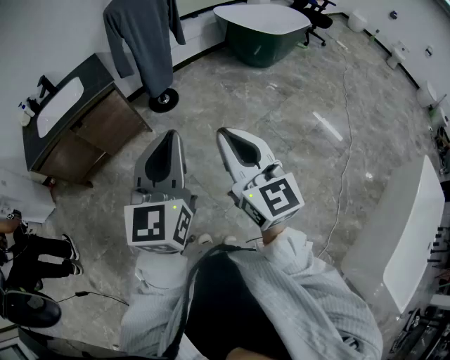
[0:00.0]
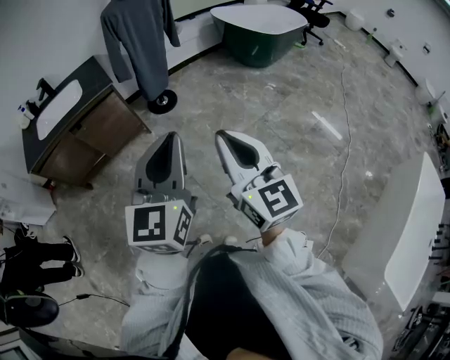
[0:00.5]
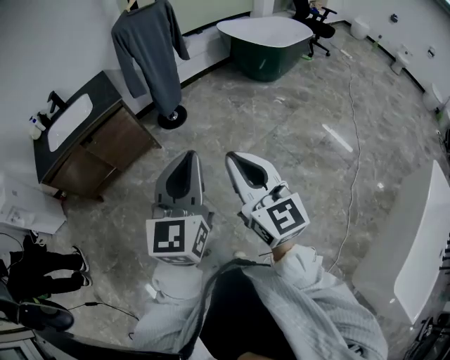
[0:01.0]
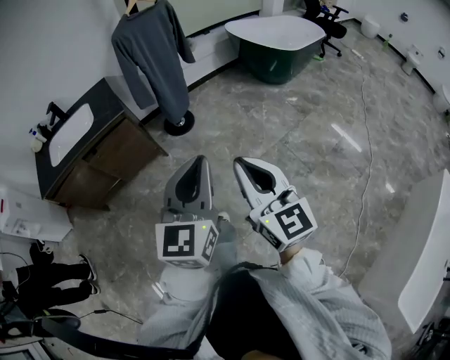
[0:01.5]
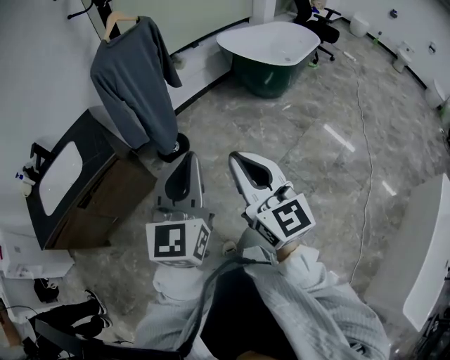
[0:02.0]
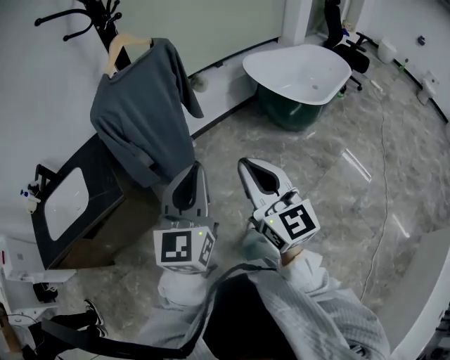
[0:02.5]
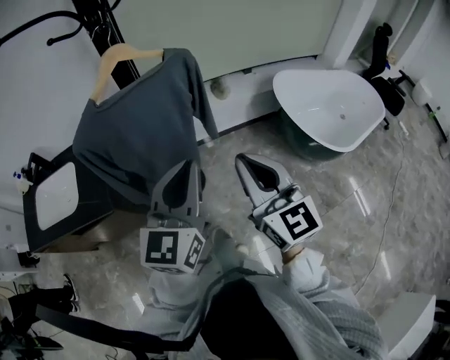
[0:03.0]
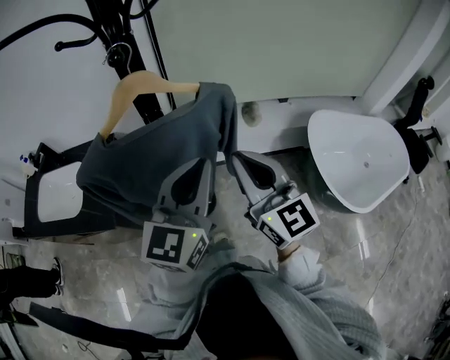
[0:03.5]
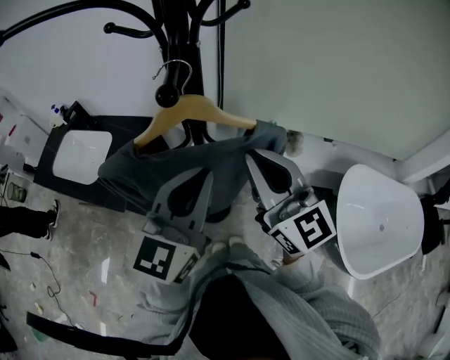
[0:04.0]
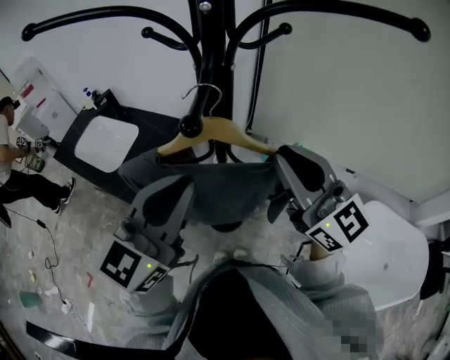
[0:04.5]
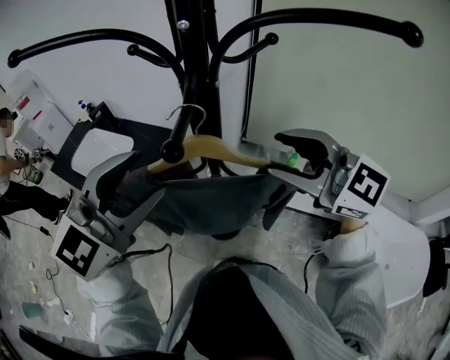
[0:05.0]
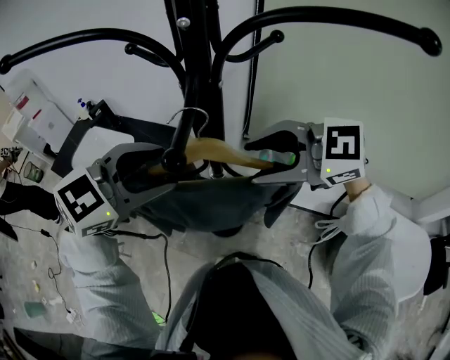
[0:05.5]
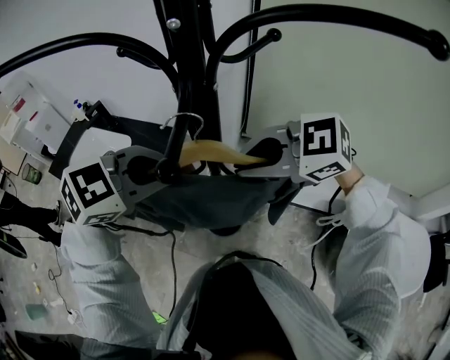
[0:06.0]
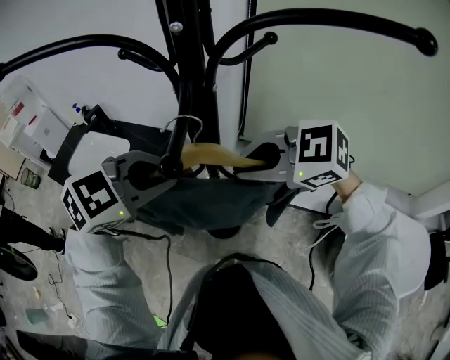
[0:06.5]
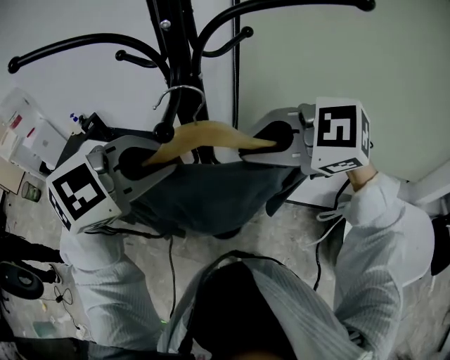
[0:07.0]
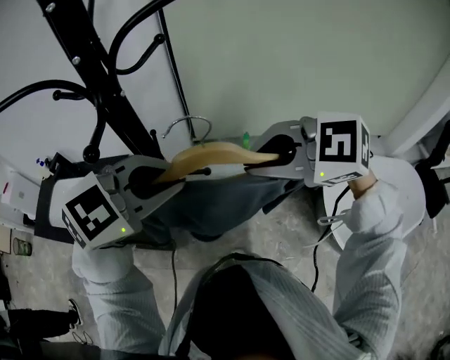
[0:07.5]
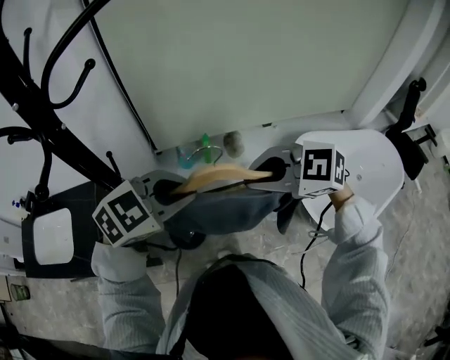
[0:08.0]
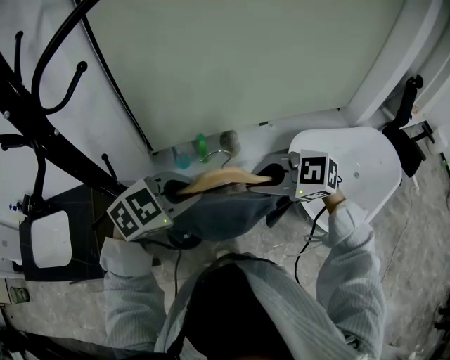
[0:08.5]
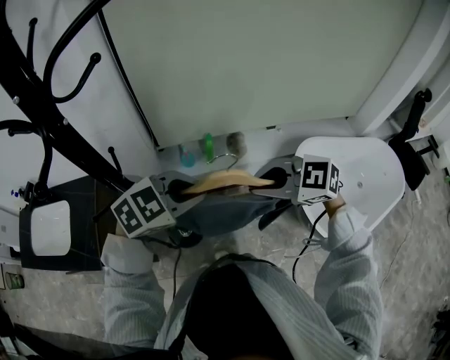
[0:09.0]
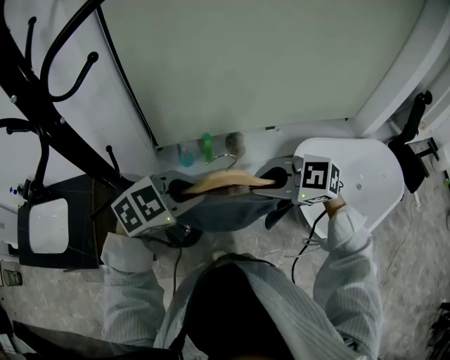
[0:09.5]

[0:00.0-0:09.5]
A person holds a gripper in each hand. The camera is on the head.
0:00.0 to 0:02.0: The two grippers go approximately 40 cm forward.
0:02.0 to 0:04.0: The two grippers travel together, about 80 cm. The right gripper changes its angle by about 50 degrees, while the left gripper rotates roughly 30 degrees.
0:04.0 to 0:05.5: The right gripper ends up some 5 cm from where it was, tips its fingers downward by about 30 degrees, and opens up, while the left gripper moves some 10 cm, swivels some 40 degrees, and opens.
0:05.5 to 0:07.5: The right gripper shifts by some 15 cm, rotates roughly 20 degrees, and closes its fingers; the left gripper moves about 15 cm, rotates roughly 30 degrees, and closes its fingers.
0:07.5 to 0:09.5: The grippers both shift downward by roughly 15 cm.

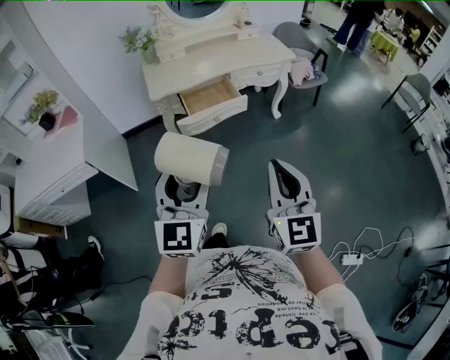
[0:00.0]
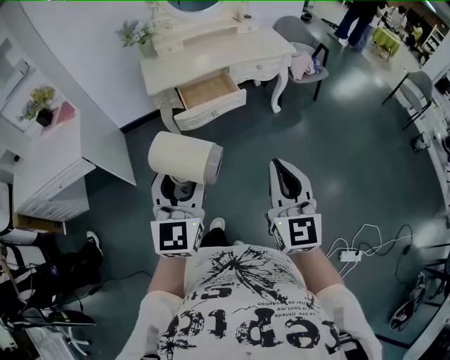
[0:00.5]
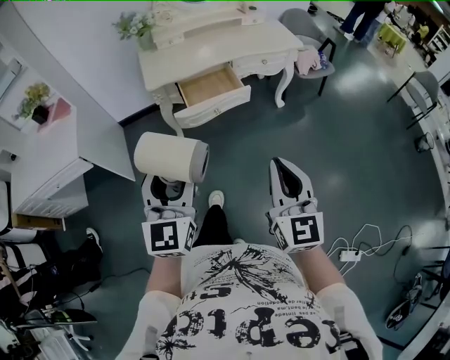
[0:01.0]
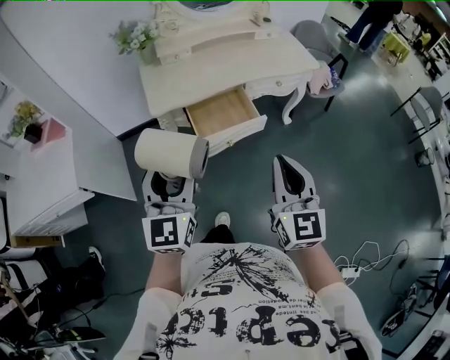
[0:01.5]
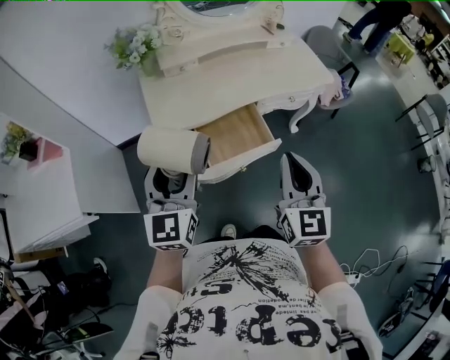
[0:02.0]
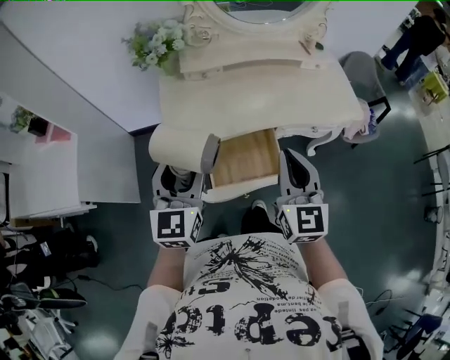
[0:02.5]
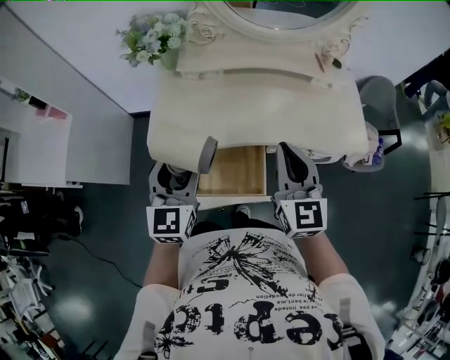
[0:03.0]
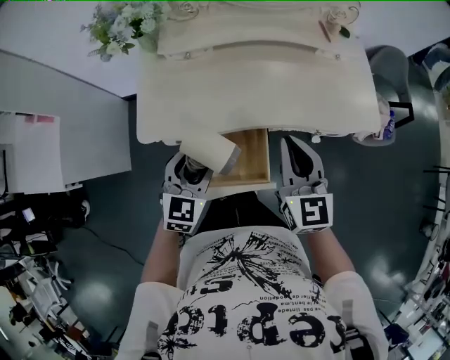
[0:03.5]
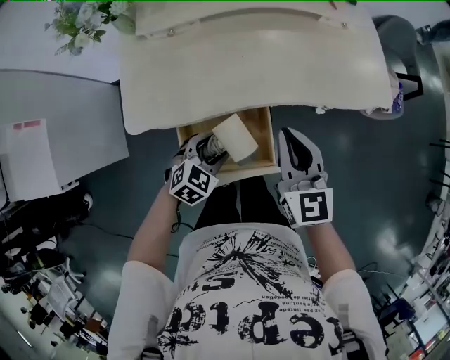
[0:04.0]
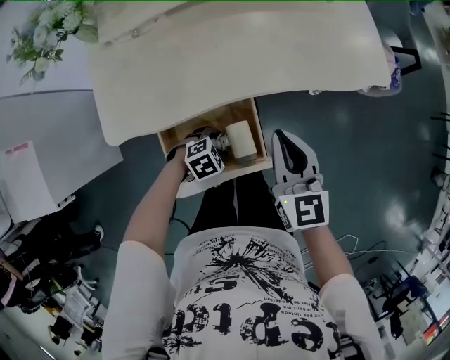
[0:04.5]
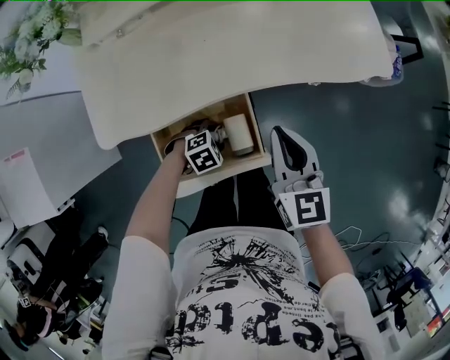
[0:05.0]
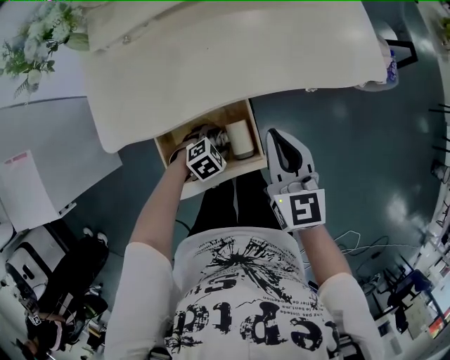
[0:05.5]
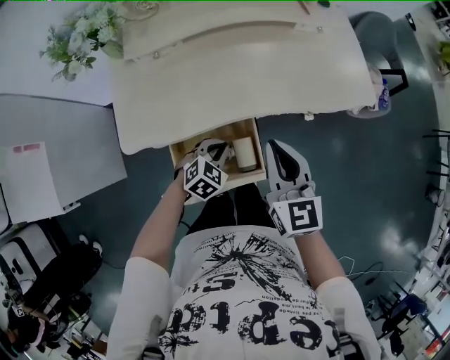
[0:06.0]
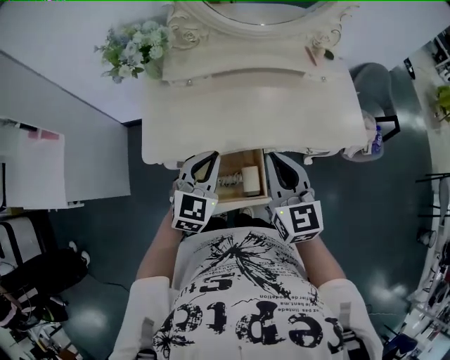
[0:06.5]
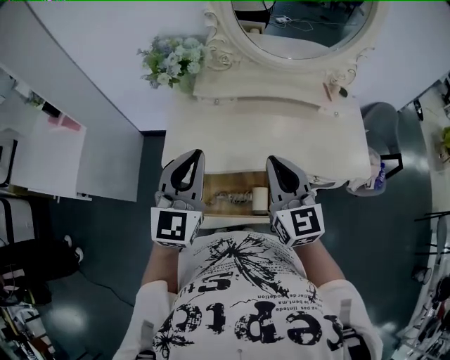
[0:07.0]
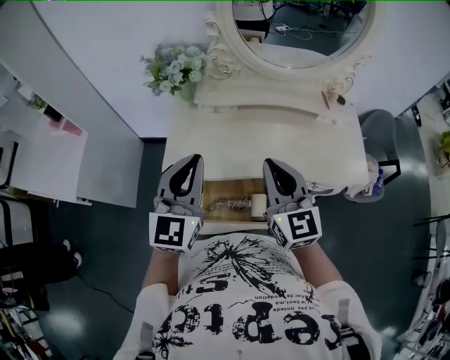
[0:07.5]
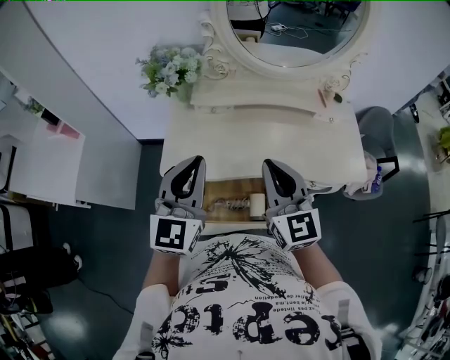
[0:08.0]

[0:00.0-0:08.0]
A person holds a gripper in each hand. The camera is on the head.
0:00.0 to 0:02.0: The grippers both shift forward by roughly 40 cm.
0:02.0 to 0:04.0: The left gripper shifts roughly 40 cm downward, to the right and forward, and angles its fingers downward, by some 50 degrees. The right gripper shifts about 30 cm forward and downward, and rotates about 20 degrees.
0:04.0 to 0:06.0: The left gripper goes downward and returns, some 15 cm each way, and closes its fingers; the right gripper goes downward and returns, roughly 5 cm each way.
0:06.0 to 0:08.0: The left gripper travels upward by approximately 35 cm, and points its fingers some 50 degrees further upward. Meanwhile the right gripper goes approximately 15 cm upward, and turns by roughly 20 degrees.

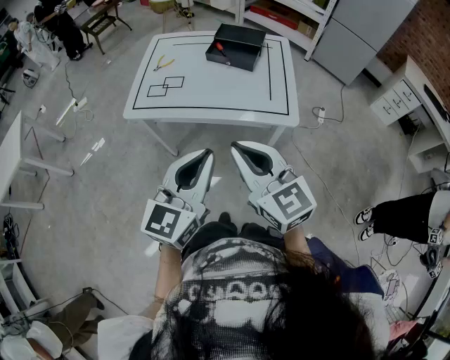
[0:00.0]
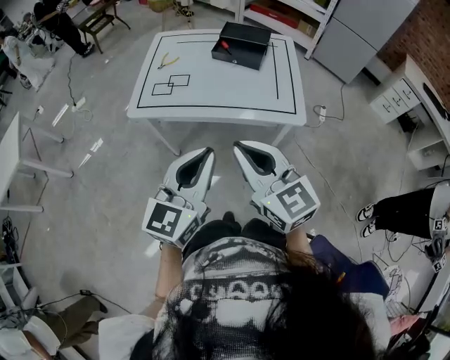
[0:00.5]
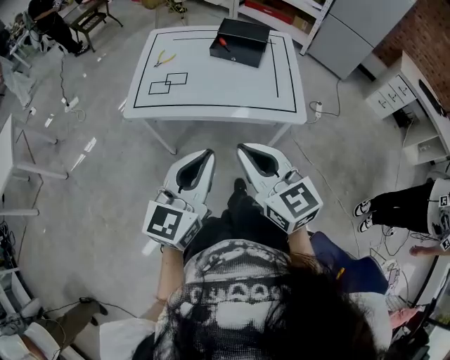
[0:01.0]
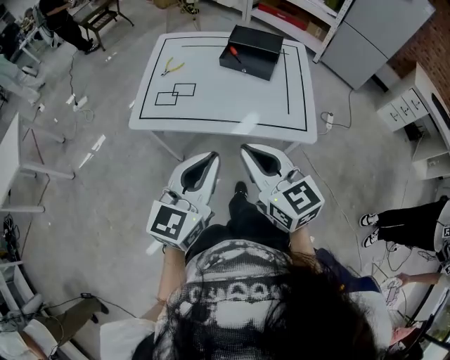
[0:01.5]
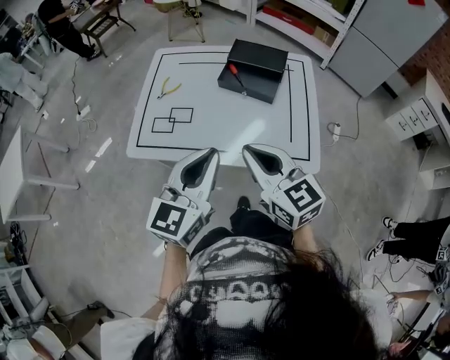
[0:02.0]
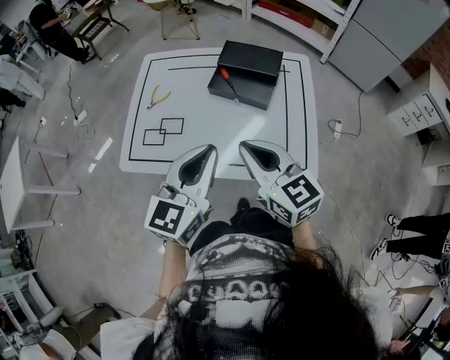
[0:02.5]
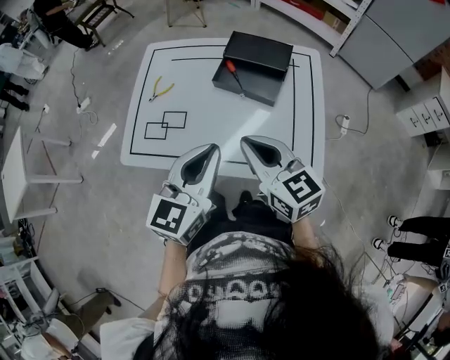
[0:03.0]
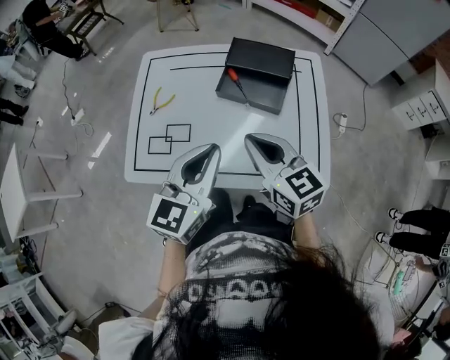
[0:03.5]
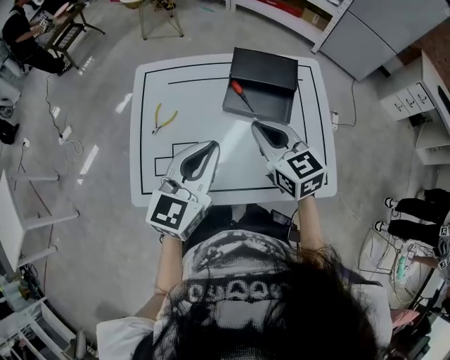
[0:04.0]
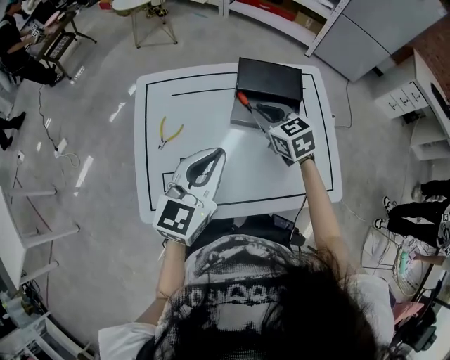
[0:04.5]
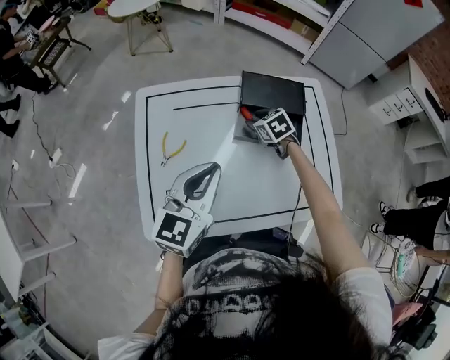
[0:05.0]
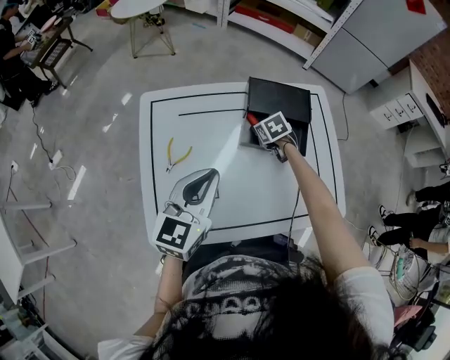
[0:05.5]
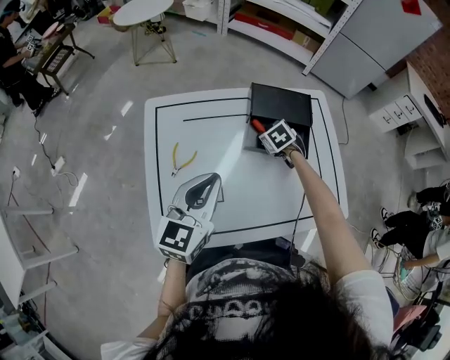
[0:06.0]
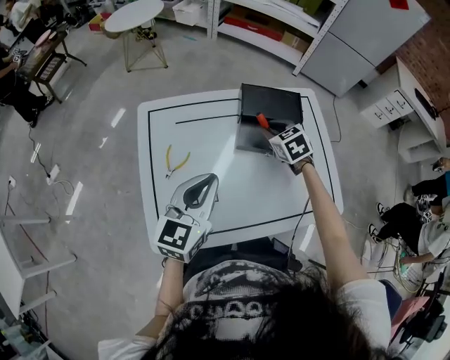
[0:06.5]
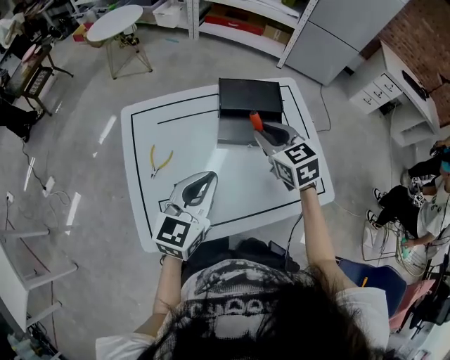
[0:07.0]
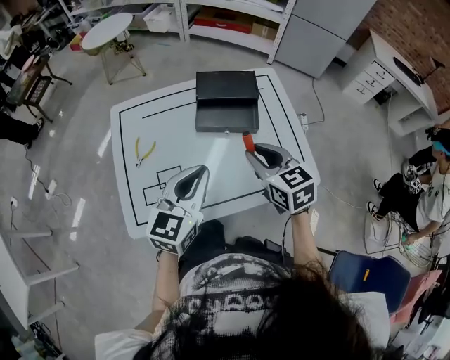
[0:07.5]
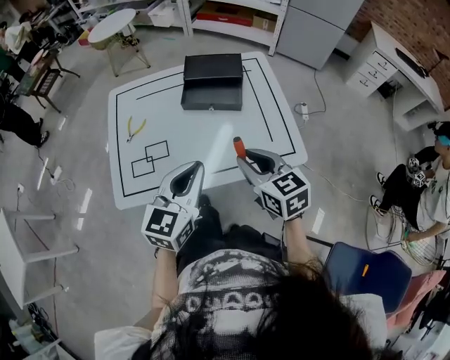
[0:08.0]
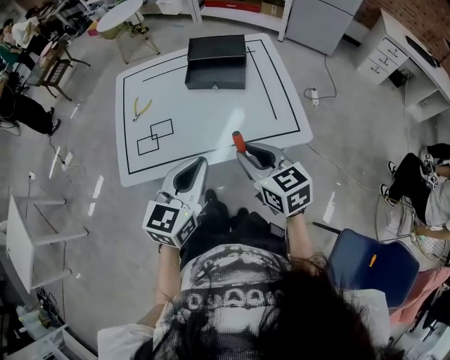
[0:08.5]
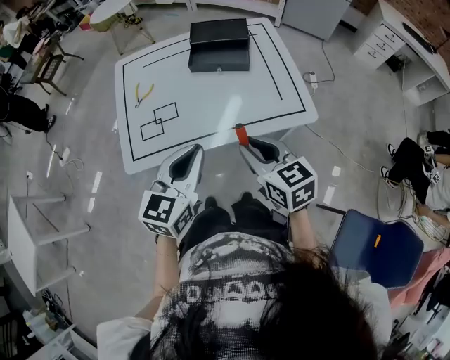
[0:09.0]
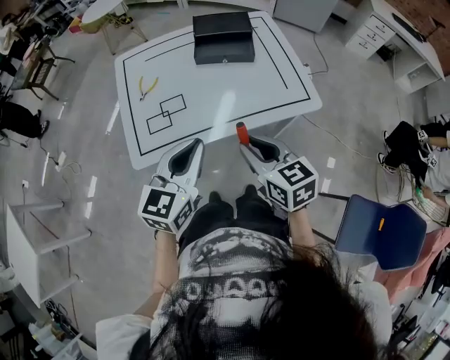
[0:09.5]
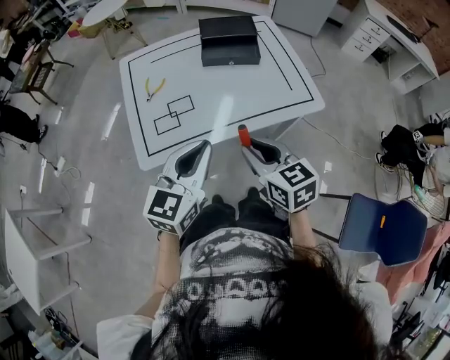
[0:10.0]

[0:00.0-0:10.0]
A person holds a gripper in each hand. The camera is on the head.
0:00.0 to 0:02.0: Both grippers move forward, about 25 cm.
0:02.0 to 0:04.0: The two grippers go some 25 cm forward.
0:04.0 to 0:06.0: The left gripper heads to the left and forward, covering some 15 cm. The right gripper heads downward and forward, covering approximately 30 cm, and points its fingers approximately 40 degrees further downward.
0:06.0 to 0:08.0: The left gripper heads to the right and backward, covering approximately 30 cm. The right gripper heads backward, upward and to the right, covering about 50 cm, and tilts its fingers roughly 40 degrees upward.
0:08.0 to 0:10.0: Both grippers move to the left and backward, roughly 20 cm.
